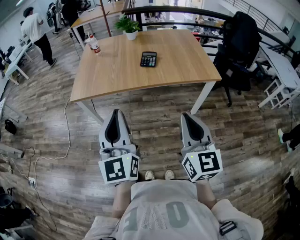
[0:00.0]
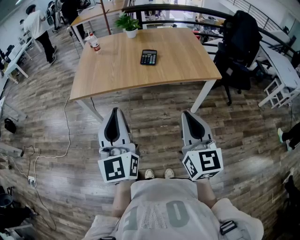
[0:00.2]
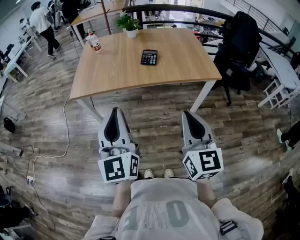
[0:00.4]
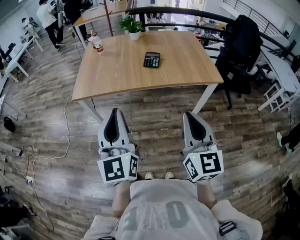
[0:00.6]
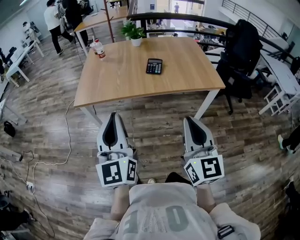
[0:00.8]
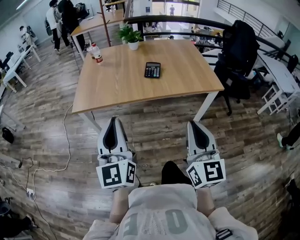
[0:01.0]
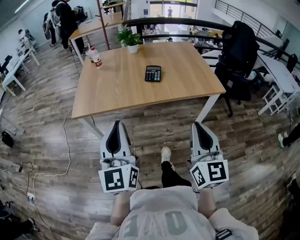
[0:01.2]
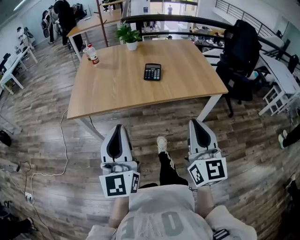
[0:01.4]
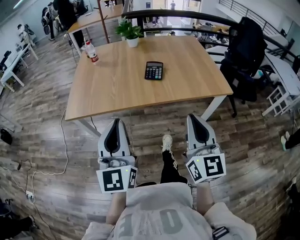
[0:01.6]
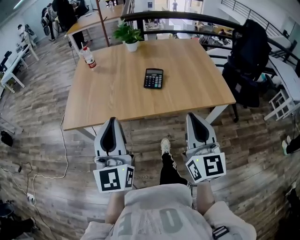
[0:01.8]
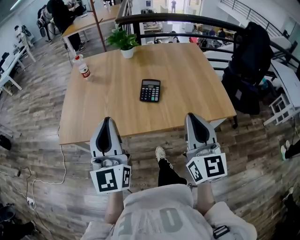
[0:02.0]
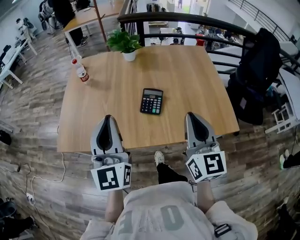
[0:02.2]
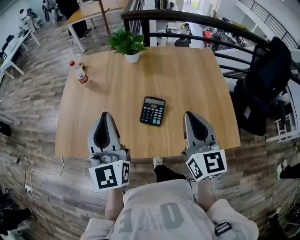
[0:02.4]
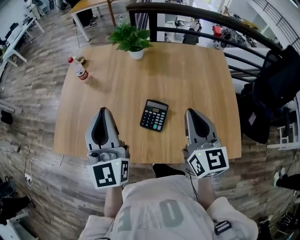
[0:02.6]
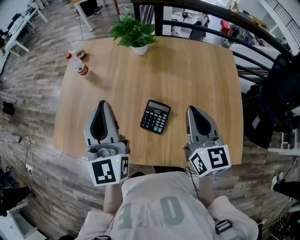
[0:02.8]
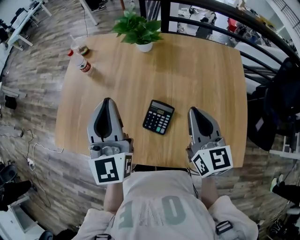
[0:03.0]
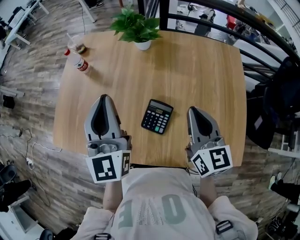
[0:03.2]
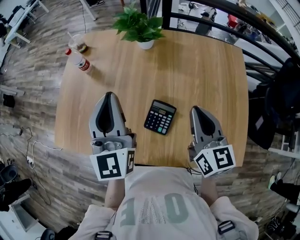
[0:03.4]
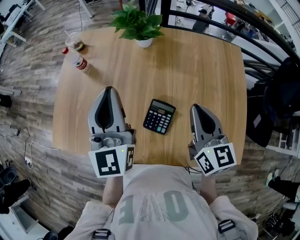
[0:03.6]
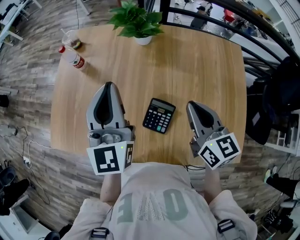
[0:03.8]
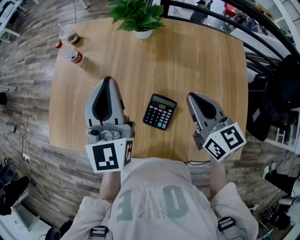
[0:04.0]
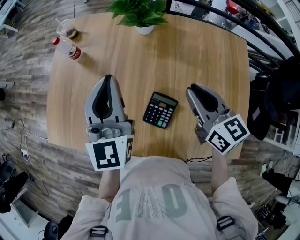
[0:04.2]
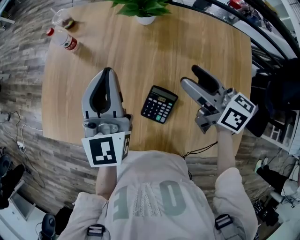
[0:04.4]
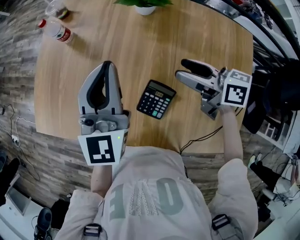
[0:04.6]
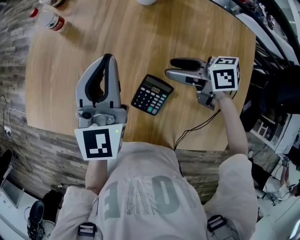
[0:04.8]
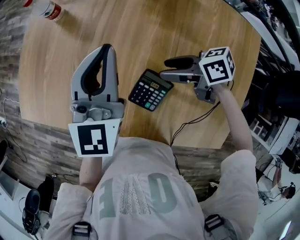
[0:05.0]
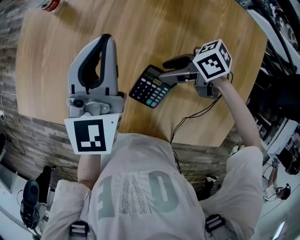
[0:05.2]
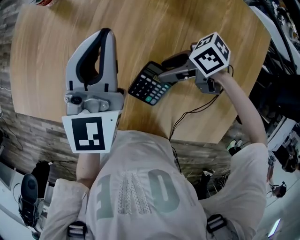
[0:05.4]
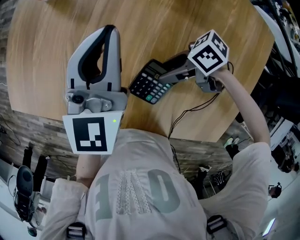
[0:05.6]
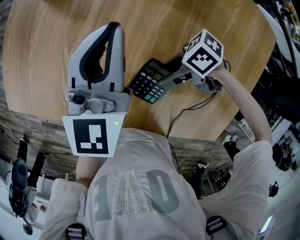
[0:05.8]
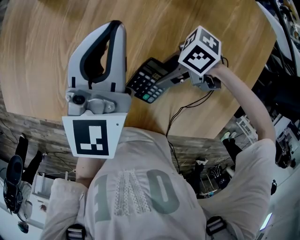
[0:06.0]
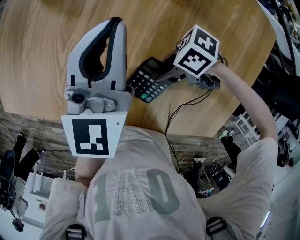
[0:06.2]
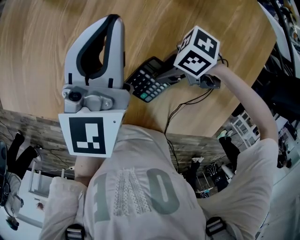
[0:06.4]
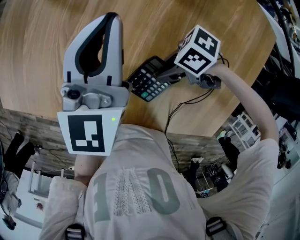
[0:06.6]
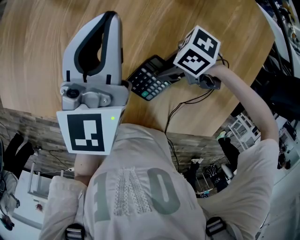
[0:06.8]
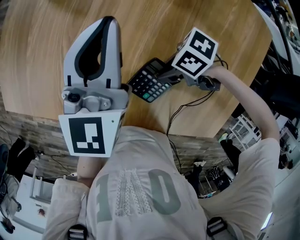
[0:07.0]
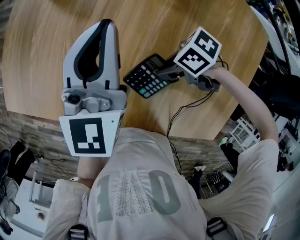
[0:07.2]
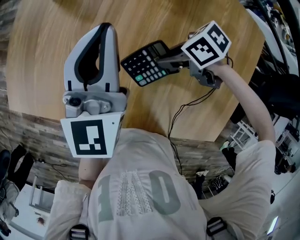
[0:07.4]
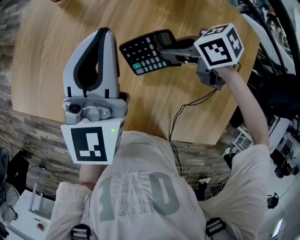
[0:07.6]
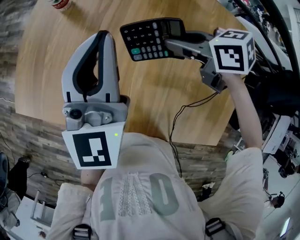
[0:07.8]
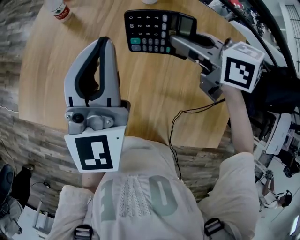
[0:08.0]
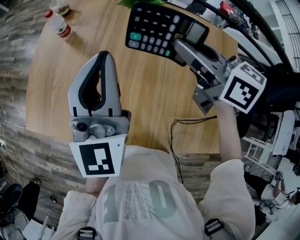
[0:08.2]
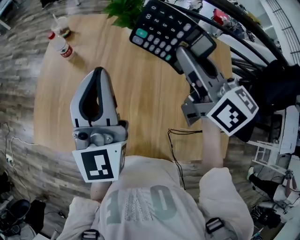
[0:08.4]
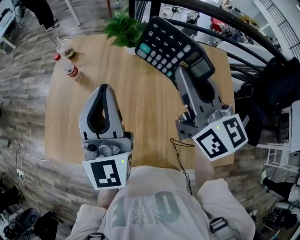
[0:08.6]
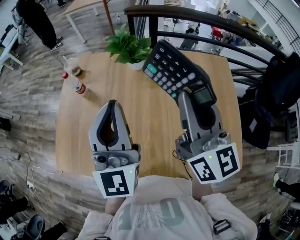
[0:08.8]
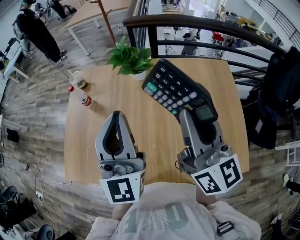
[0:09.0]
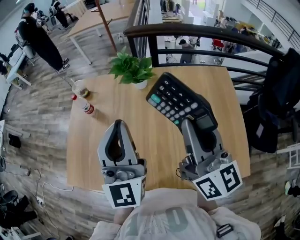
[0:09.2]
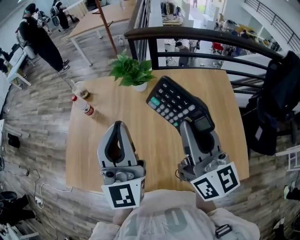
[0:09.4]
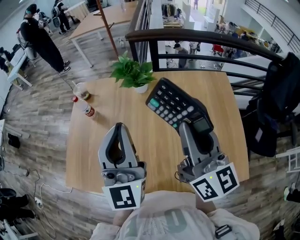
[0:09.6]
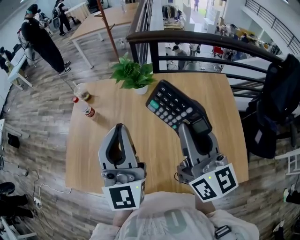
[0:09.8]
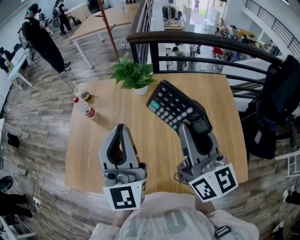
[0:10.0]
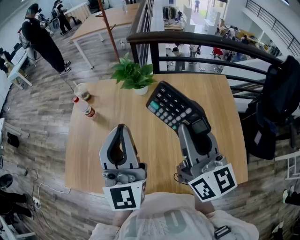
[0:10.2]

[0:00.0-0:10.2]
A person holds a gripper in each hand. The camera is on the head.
0.0 to 1.4 s: The grippers both shift forward by approximately 10 cm.
1.4 to 3.0 s: The pair of grippers is taken forward, about 50 cm. The left gripper turns by roughly 20 degrees, while the right gripper swivels roughly 30 degrees.
3.0 to 4.4 s: Both grippers travel together forward, roughly 10 cm. The right gripper swivels roughly 40 degrees, and opens.
4.4 to 5.8 s: The right gripper moves downward, some 20 cm, and swivels approximately 90 degrees; the left gripper shifts roughly 10 cm downward.
5.8 to 7.2 s: The right gripper closes up.
7.2 to 8.8 s: The left gripper is displaced upward by roughly 20 cm, and turns by some 30 degrees. The right gripper moves upward, approximately 40 cm, and tips its fingers upward by some 50 degrees.
8.8 to 10.2 s: The grippers make only small movements.

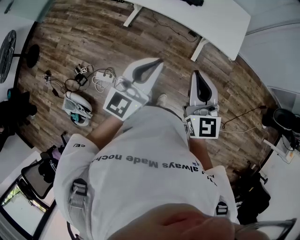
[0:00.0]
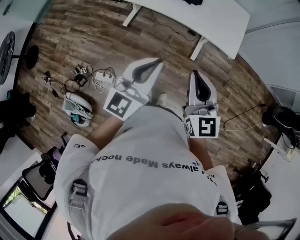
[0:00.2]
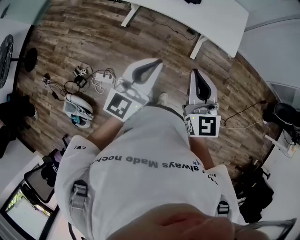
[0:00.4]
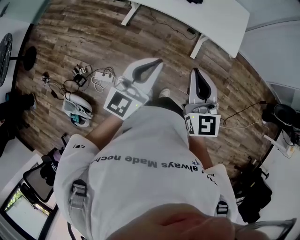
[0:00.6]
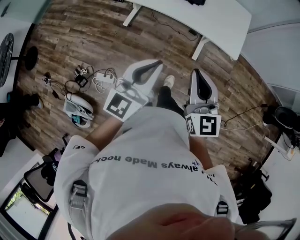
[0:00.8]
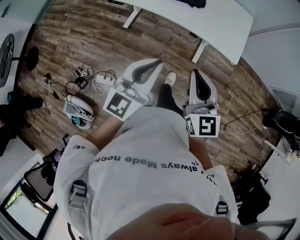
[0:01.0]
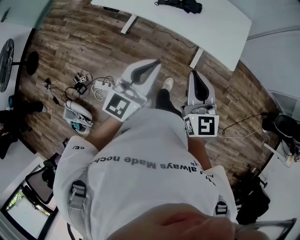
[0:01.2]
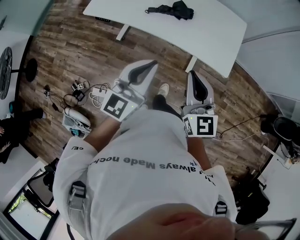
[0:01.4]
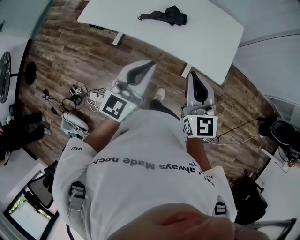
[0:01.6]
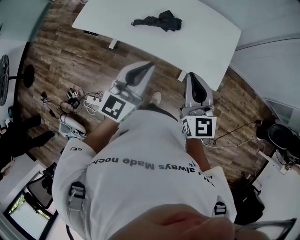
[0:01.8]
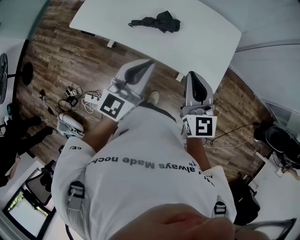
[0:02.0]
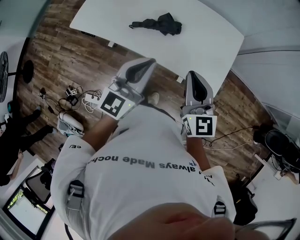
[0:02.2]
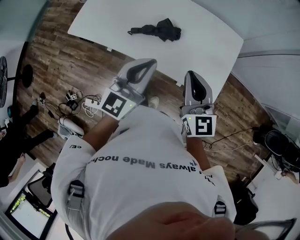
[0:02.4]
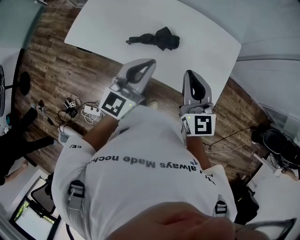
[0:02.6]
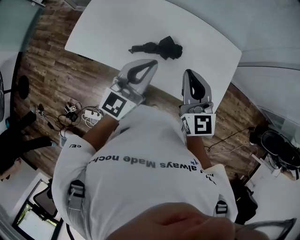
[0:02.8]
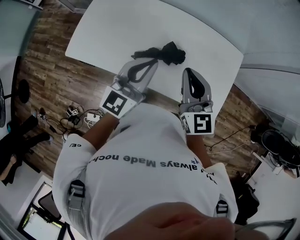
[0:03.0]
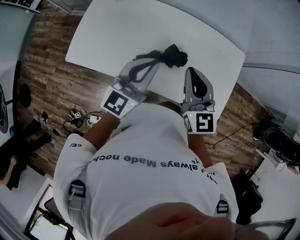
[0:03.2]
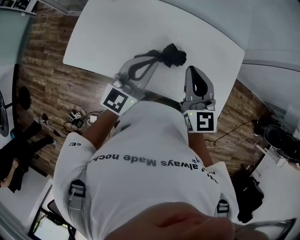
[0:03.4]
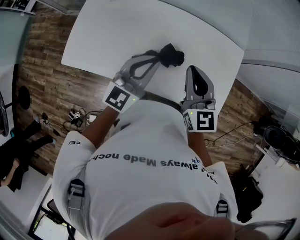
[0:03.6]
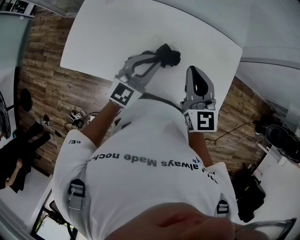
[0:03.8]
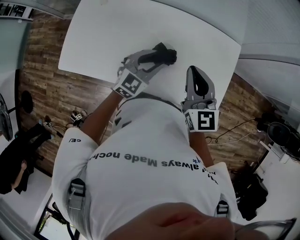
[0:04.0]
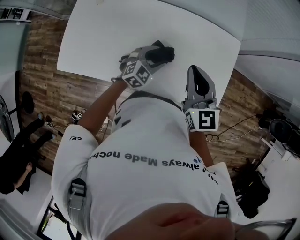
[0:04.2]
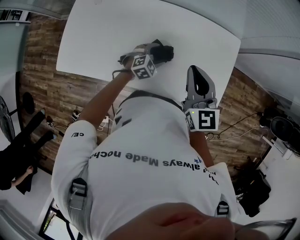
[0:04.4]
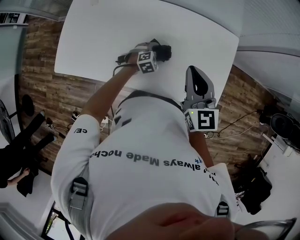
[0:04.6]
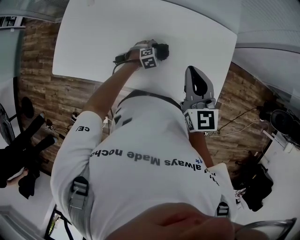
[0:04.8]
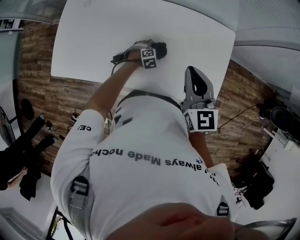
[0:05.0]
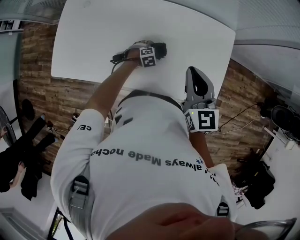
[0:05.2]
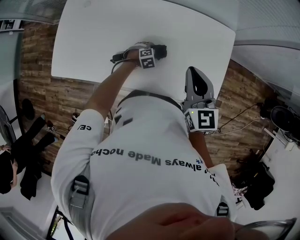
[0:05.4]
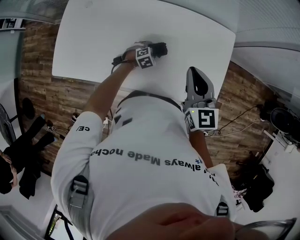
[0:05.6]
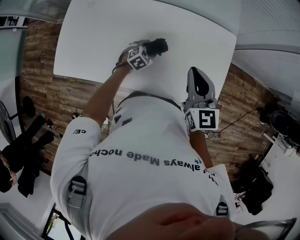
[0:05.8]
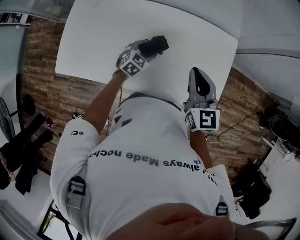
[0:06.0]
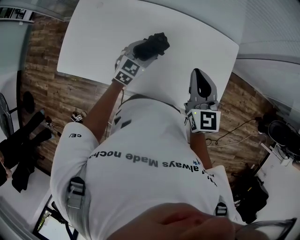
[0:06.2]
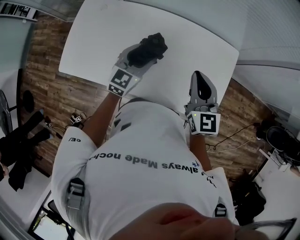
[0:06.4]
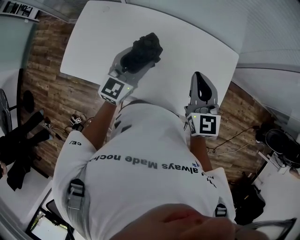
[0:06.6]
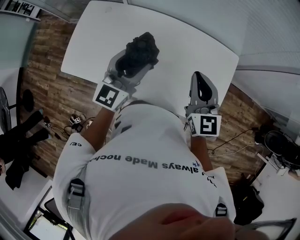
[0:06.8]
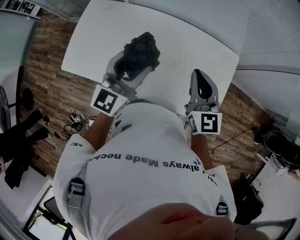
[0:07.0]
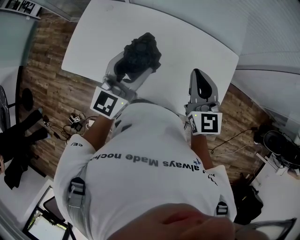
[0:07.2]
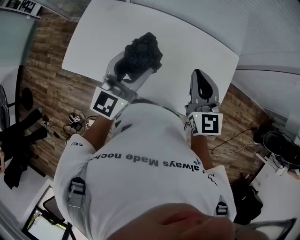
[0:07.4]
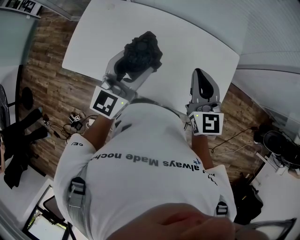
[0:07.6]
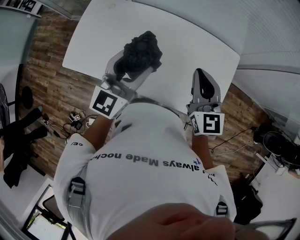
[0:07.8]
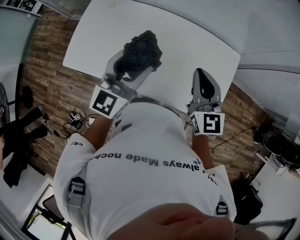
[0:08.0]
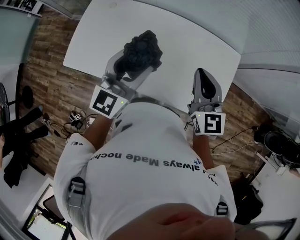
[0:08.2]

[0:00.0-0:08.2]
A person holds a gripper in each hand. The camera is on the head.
0.0 to 1.6 s: The two grippers go roughly 30 cm forward.
1.6 to 3.2 s: The pair of grippers is taken forward, some 40 cm.
3.2 to 5.0 s: The right gripper goes roughly 15 cm to the right and forward, while the left gripper goes roughly 40 cm downward, tilts its fingers roughly 70 degrees downward, and opens its fingers.
5.0 to 6.6 s: The left gripper is displaced upward by roughly 40 cm, tilts its fingers about 60 degrees upward, and closes its fingers.
6.6 to 8.2 s: The left gripper moves upward and backward, approximately 10 cm, while the right gripper changes place by some 5 cm.

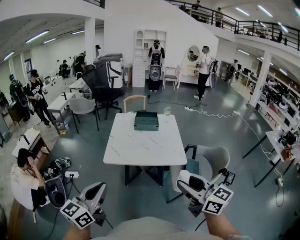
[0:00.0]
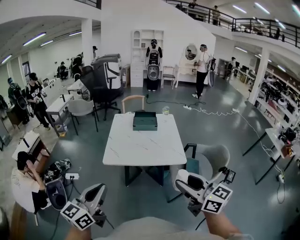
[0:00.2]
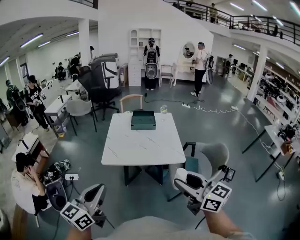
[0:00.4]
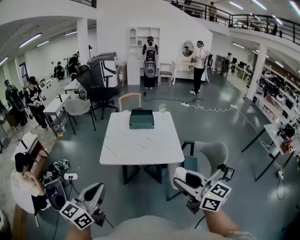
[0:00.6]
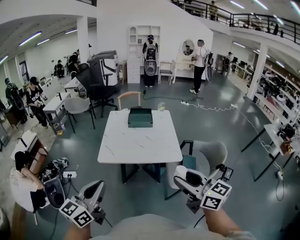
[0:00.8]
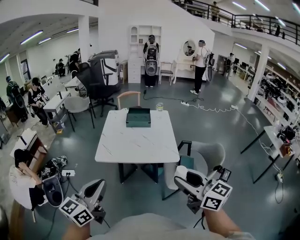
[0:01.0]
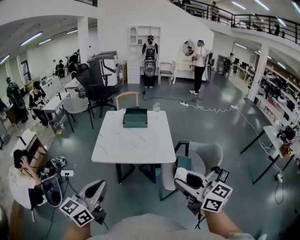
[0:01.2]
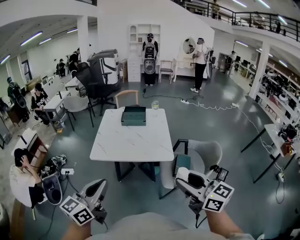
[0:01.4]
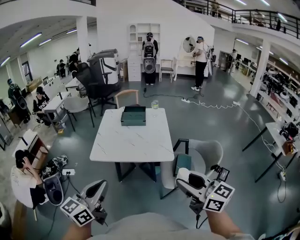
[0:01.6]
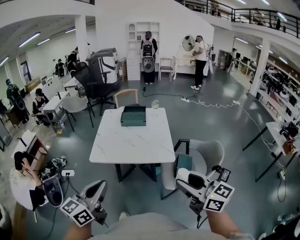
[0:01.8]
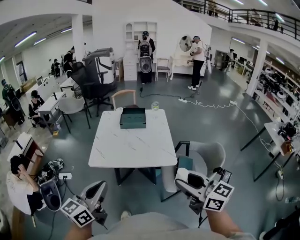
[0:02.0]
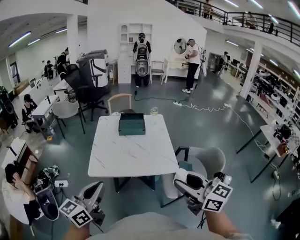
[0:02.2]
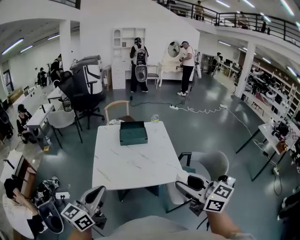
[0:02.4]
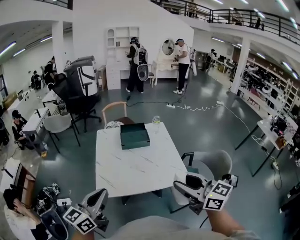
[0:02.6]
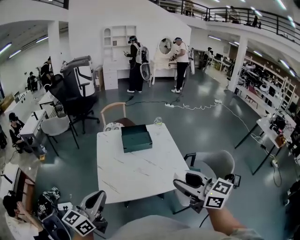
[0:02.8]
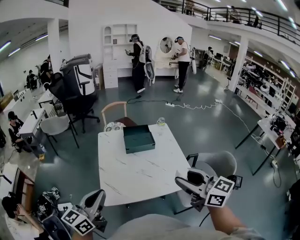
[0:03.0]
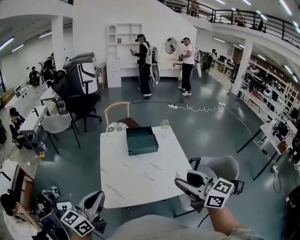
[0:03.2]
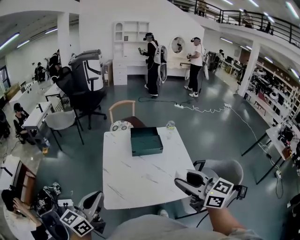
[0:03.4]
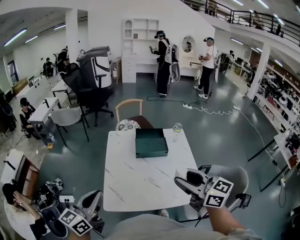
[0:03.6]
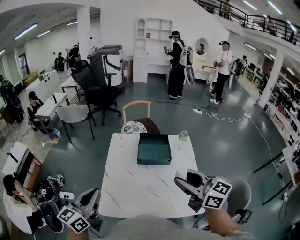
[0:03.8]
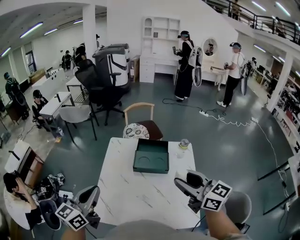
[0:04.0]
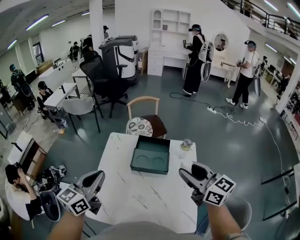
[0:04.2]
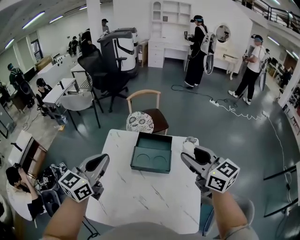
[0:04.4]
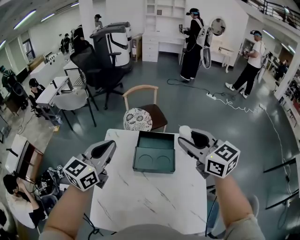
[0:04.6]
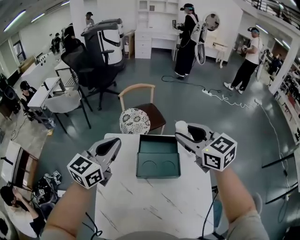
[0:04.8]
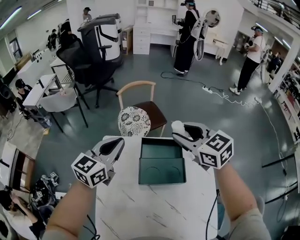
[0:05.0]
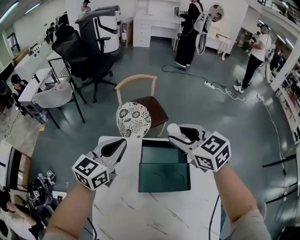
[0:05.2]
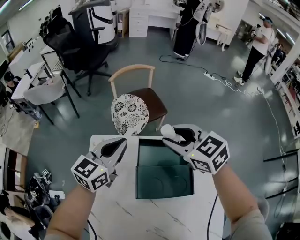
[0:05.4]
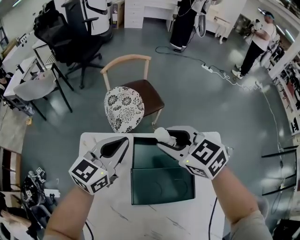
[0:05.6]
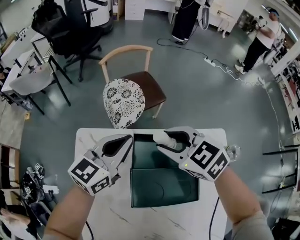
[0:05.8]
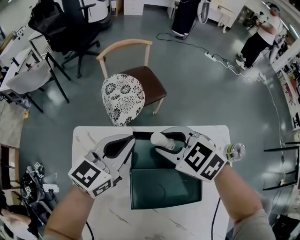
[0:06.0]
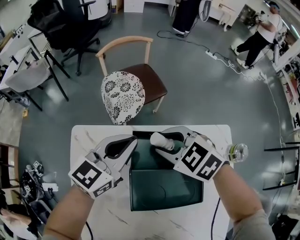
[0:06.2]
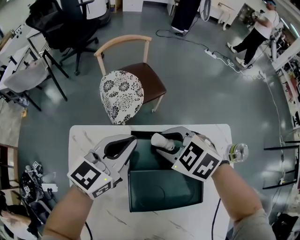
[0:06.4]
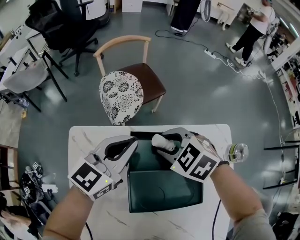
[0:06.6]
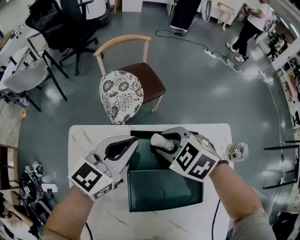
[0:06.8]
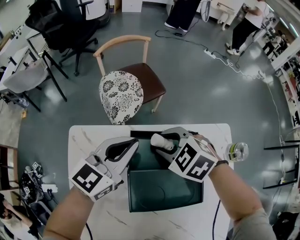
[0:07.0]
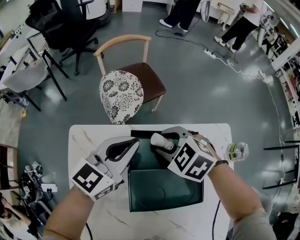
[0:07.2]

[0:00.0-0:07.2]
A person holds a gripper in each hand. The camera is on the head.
0.0 to 1.4 s: The grippers both shift to the right by roughly 15 cm.
1.4 to 2.8 s: Both grippers move forward and to the left, about 30 cm.
2.8 to 4.4 s: The grippers both shift forward by some 40 cm. The left gripper turns by approximately 20 degrees.
4.4 to 5.8 s: The left gripper travels forward and downward by about 35 cm. The right gripper moves downward, forward and to the left, approximately 40 cm, and points its fingers about 30 degrees further downward.
5.8 to 7.2 s: The right gripper moves downward, some 10 cm.
